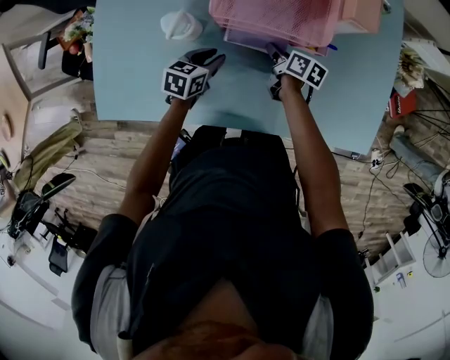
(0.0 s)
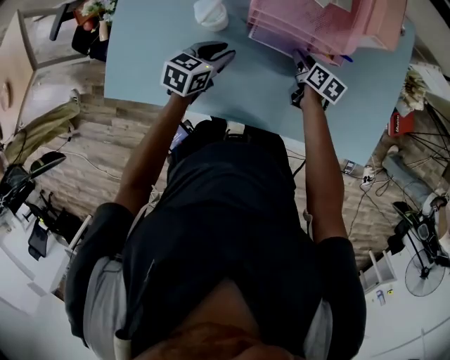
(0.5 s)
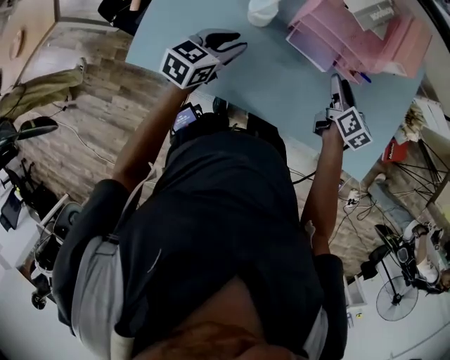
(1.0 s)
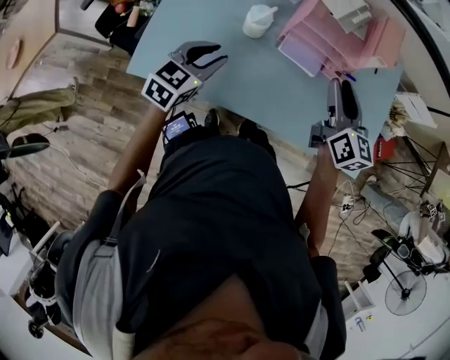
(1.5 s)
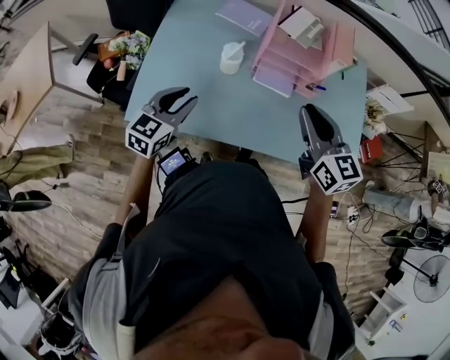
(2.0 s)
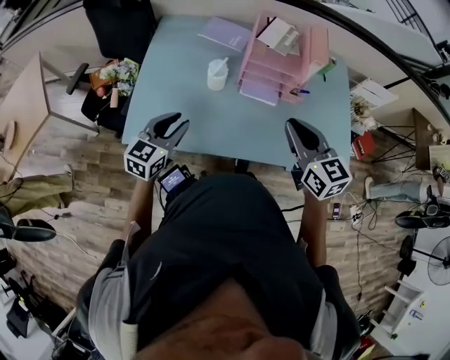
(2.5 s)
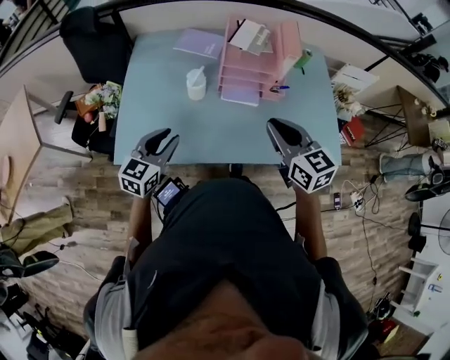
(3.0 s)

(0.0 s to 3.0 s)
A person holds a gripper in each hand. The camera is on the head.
0.0 s - 1.5 s: The right gripper is displaced upward by approximately 35 cm, and twists some 40 degrees counterclockwise, seen from behind. The left gripper travels upward, to the left and backward by some 30 cm, and swivels approximately 30 degrees.
1.5 s - 3.0 s: The right gripper shifts approximately 10 cm backward, and closes. Meanwhile the left gripper is displaced backward by about 10 cm.

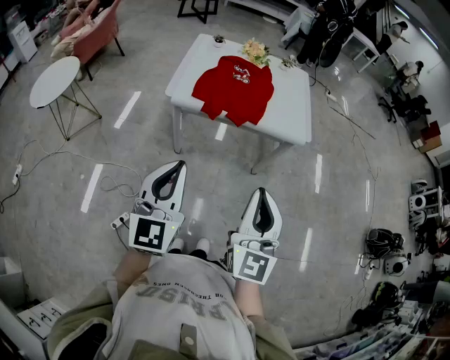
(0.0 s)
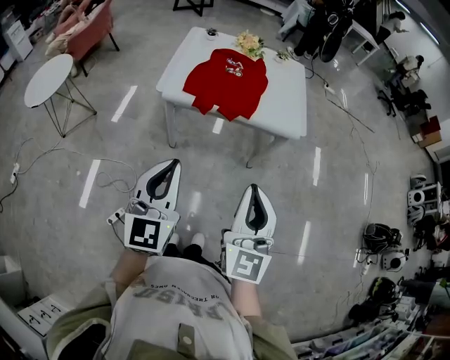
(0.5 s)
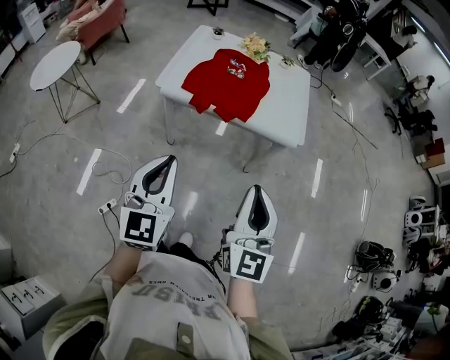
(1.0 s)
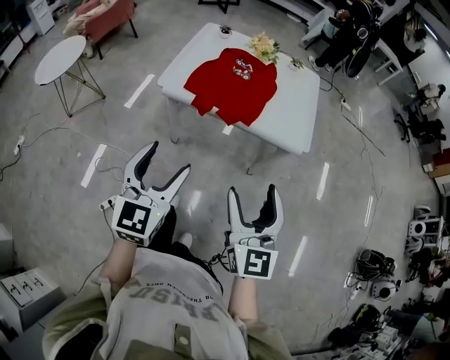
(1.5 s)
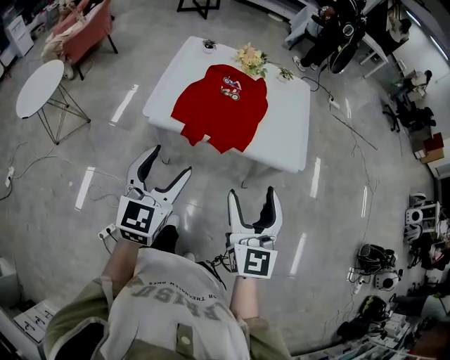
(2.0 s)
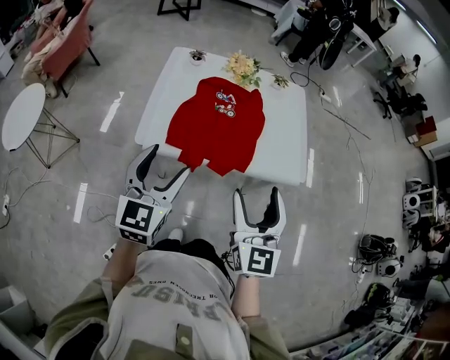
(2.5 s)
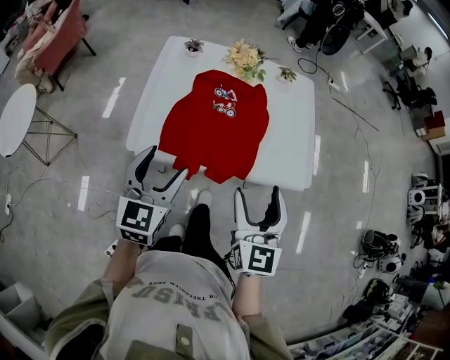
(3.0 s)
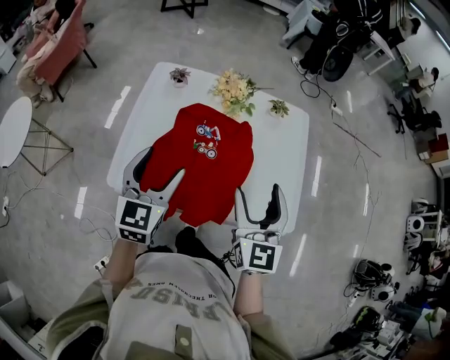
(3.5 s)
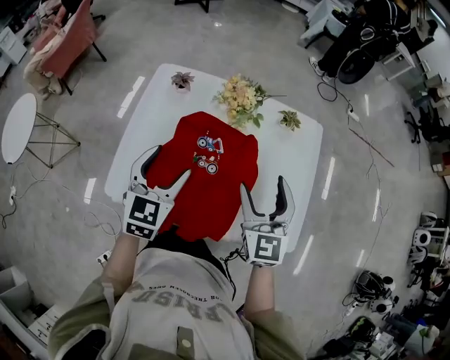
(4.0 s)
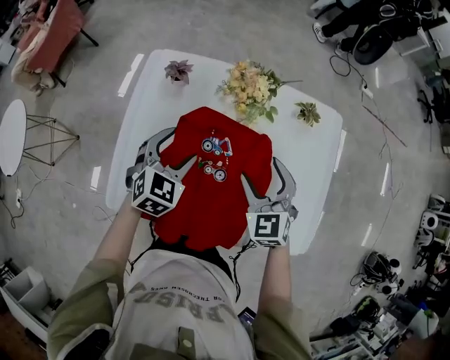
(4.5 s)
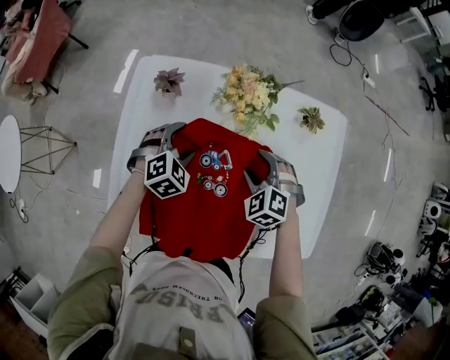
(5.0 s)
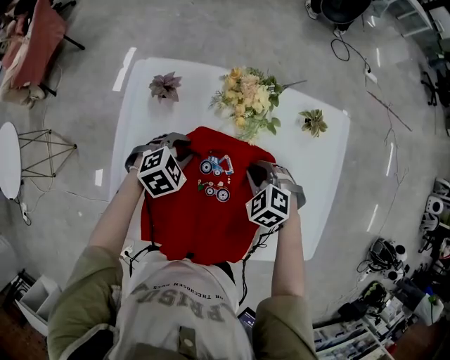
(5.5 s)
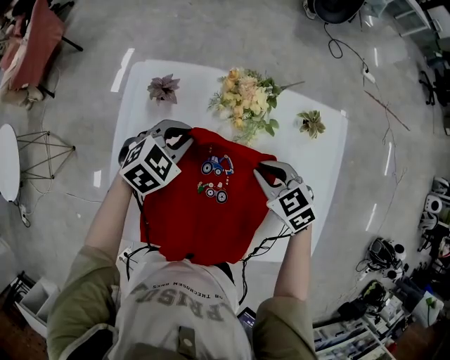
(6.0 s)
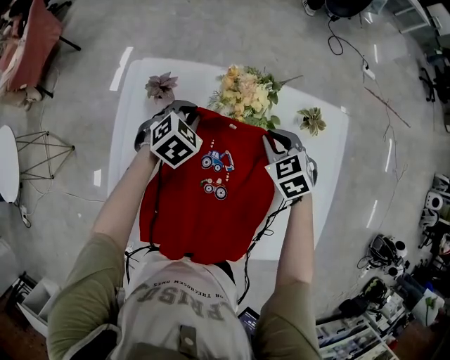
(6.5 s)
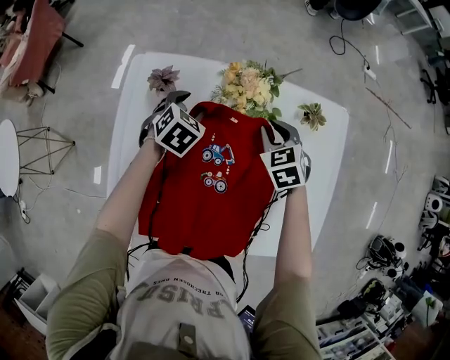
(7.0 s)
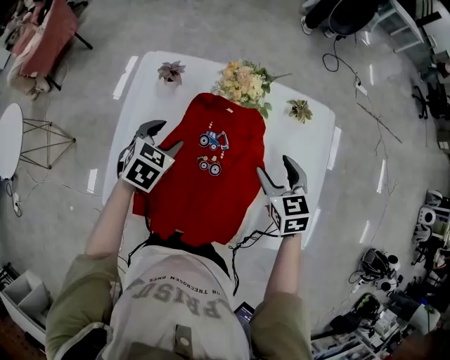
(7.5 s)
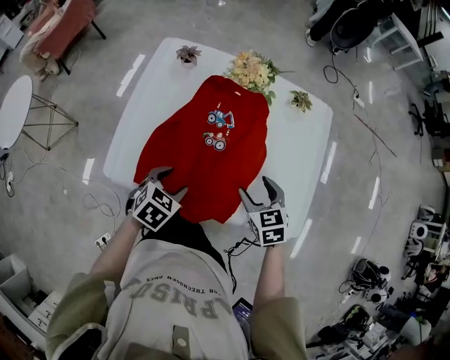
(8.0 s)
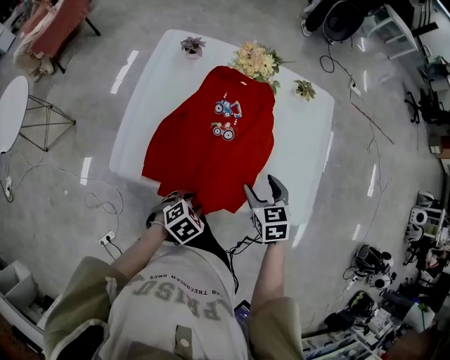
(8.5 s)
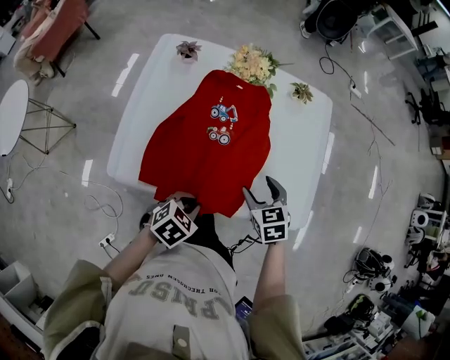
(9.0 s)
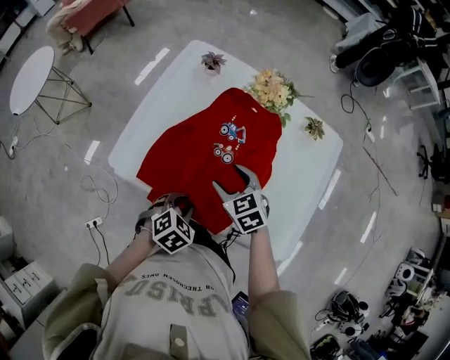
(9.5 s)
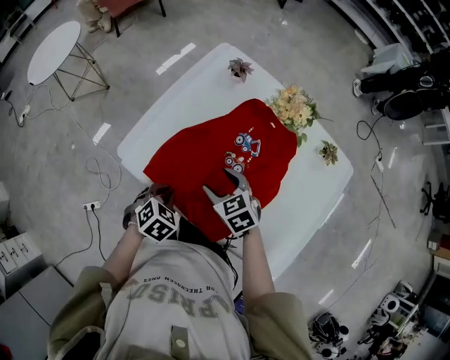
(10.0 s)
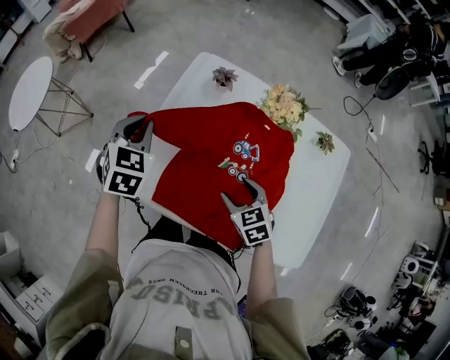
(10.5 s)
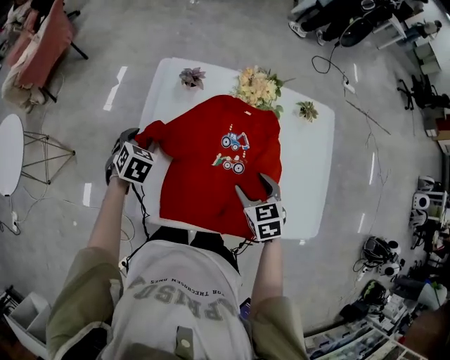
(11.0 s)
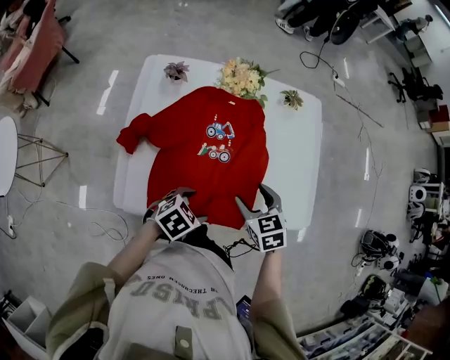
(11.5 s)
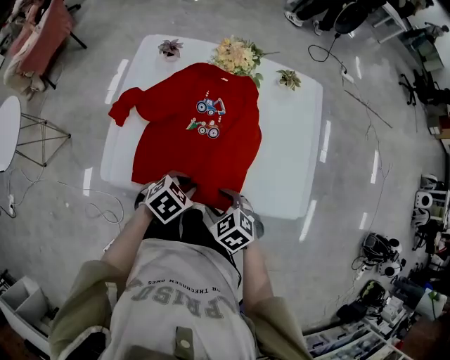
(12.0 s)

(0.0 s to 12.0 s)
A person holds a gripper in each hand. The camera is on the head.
0.0 s - 2.0 s: Both grippers travel together forward, approximately 20 cm. The right gripper opens its fingers, while the left gripper opens up.
2.0 s - 4.0 s: The two grippers travel together, forward, roughly 40 cm.
4.0 s - 6.0 s: The right gripper travels downward and forward by roughly 25 cm, angles its fingers downward, by approximately 40 degrees, and closes its fingers. The left gripper travels forward and downward by roughly 25 cm, turns by about 40 degrees, and closes.
6.0 s - 8.0 s: The left gripper is displaced backward by about 30 cm, changes its angle by approximately 30 degrees, and opens up. Meanwhile the right gripper moves backward, roughly 20 cm, and opens.
8.0 s - 10.0 s: The right gripper shifts by approximately 20 cm, and turns by roughly 40 degrees. The left gripper turns by roughly 20 degrees, and closes.
10.0 s - 12.0 s: The left gripper reaches some 15 cm upward, then returns, swivels roughly 40 degrees, and opens, then closes once more, while the right gripper shifts by some 15 cm, and turns by approximately 20 degrees.

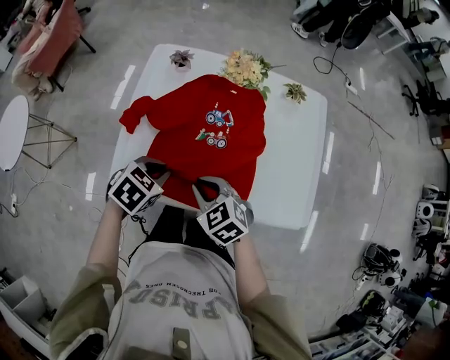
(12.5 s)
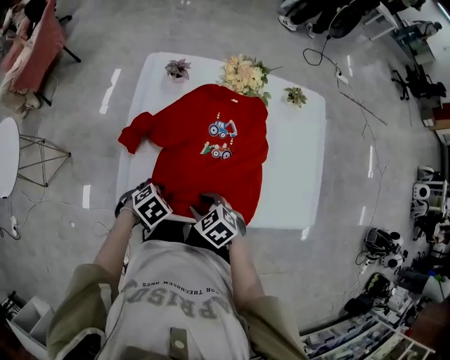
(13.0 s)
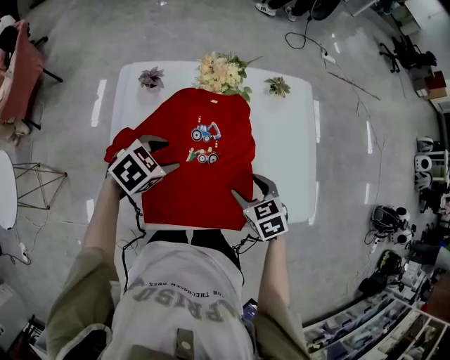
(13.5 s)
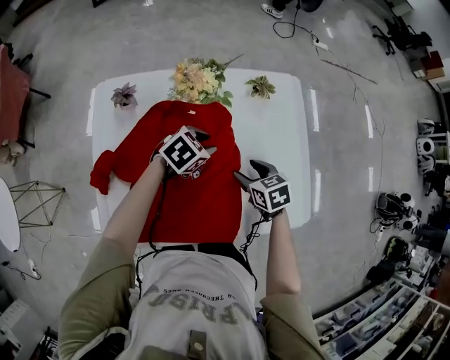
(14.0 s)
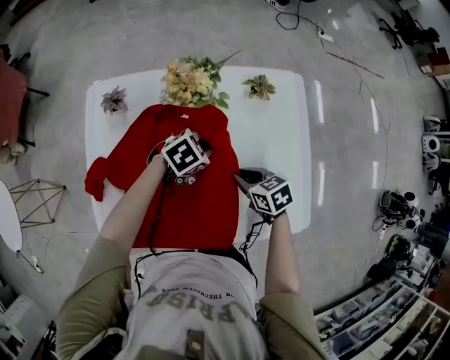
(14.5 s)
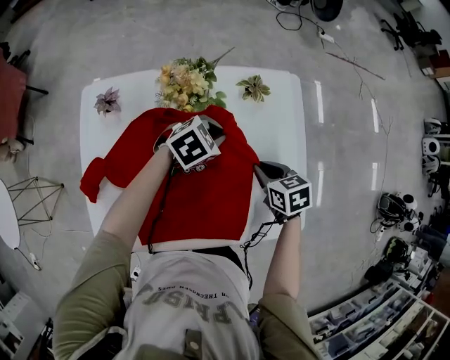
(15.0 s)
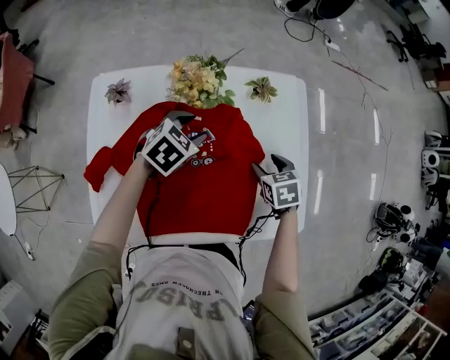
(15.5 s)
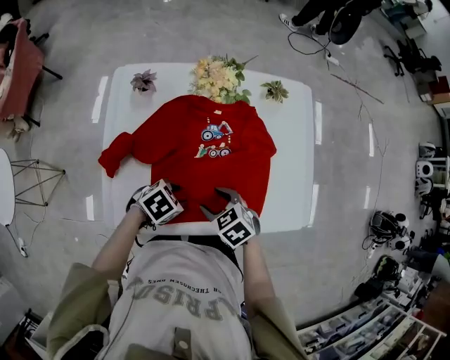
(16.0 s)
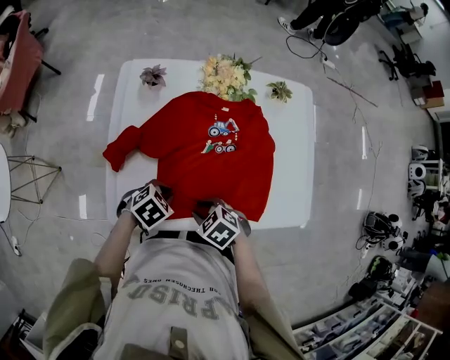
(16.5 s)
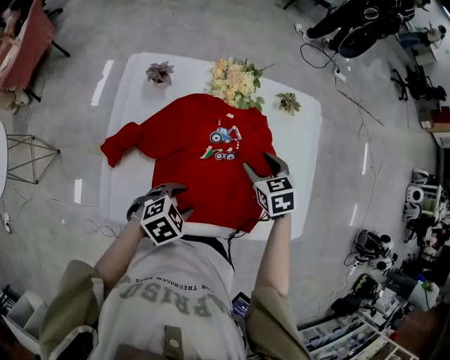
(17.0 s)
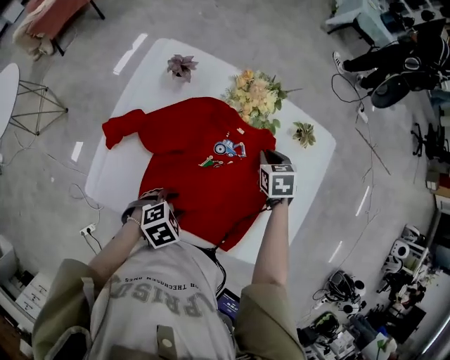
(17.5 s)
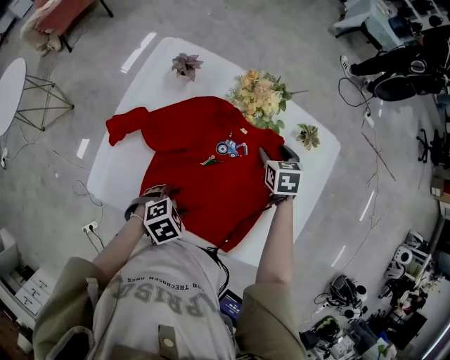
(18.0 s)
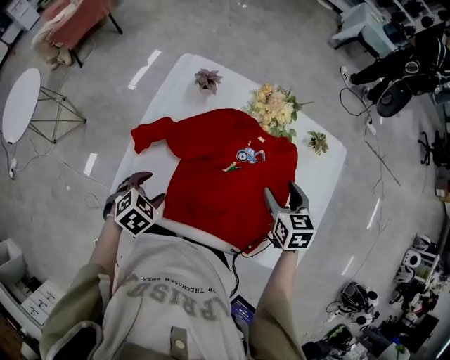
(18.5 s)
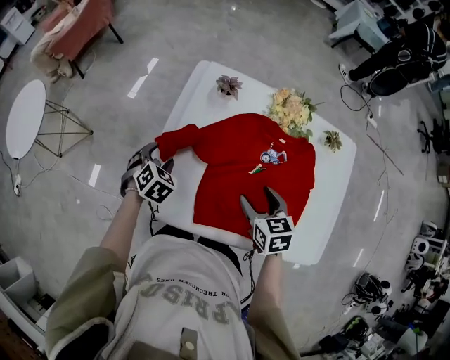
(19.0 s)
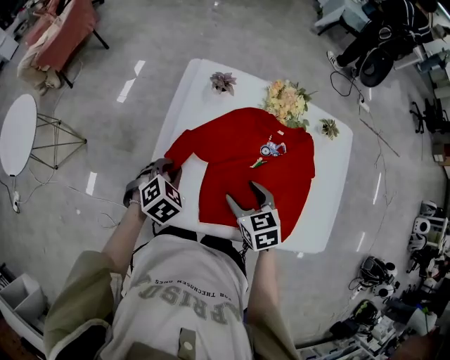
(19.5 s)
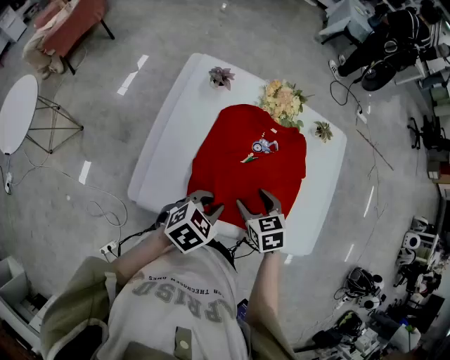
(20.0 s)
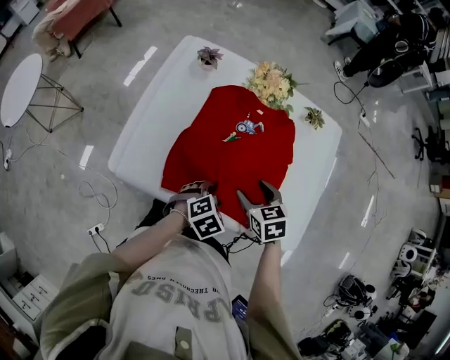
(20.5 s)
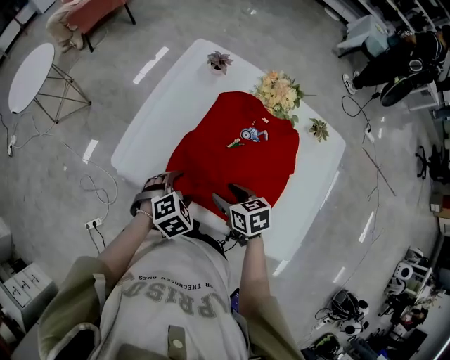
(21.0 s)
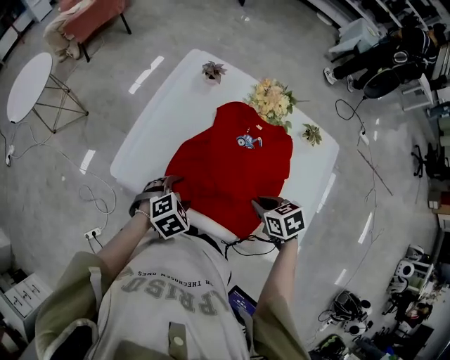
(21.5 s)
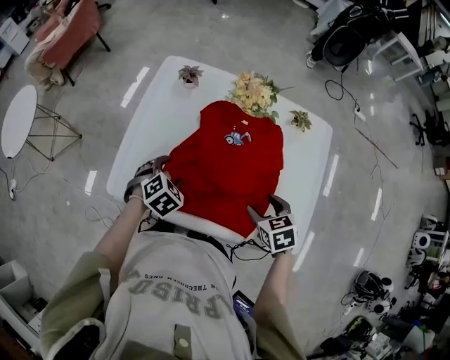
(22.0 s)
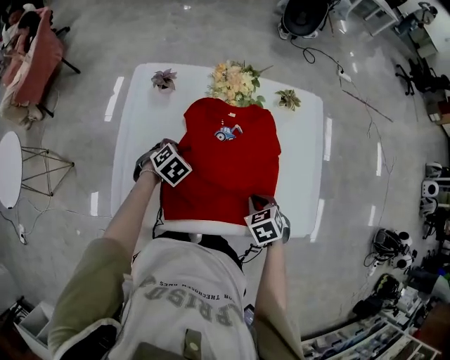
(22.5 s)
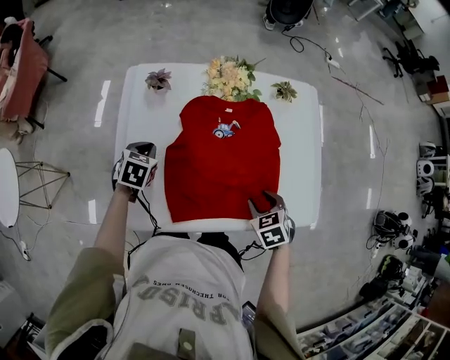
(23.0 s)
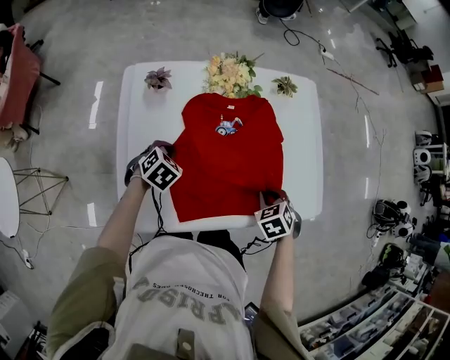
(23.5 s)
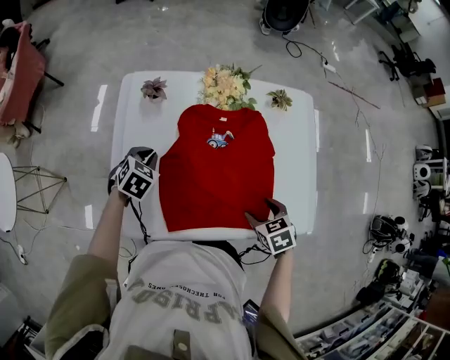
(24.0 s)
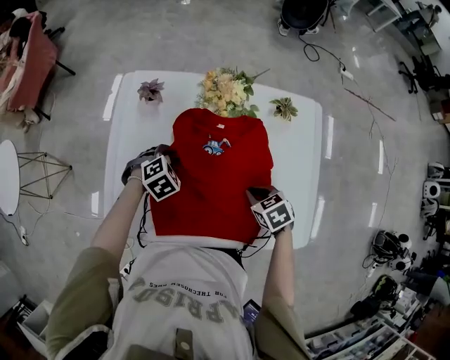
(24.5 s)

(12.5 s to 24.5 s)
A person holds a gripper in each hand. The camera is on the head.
12.5 s - 14.5 s: The right gripper moves up and down over about 10 cm, changing direction 2 times, changes its angle by approximately 40 degrees, and opens, then closes once more; the left gripper goes up and down, approximately 10 cm each way, reversing 2 times, changes its angle by approximately 30 degrees, and opens, then closes again.
14.5 s - 16.5 s: The left gripper ends up some 30 cm from where it was, and opens, then closes again. Meanwhile the right gripper ends up roughly 25 cm from where it was, and rotates roughly 30 degrees.
16.5 s - 18.5 s: The right gripper goes up and down, roughly 10 cm each way, reversing 2 times, rotates approximately 30 degrees, and opens its fingers. The left gripper moves up and down over roughly 5 cm, changing direction 2 times, turns by approximately 30 degrees, and opens up.
18.5 s - 20.5 s: The left gripper reaches roughly 5 cm upward, then returns, and closes, then opens again.
20.5 s - 22.5 s: The right gripper closes its fingers. Meanwhile the left gripper ends up some 25 cm from where it was, and closes.
22.5 s - 24.5 s: The right gripper ends up approximately 10 cm from where it was, and opens and closes again.
